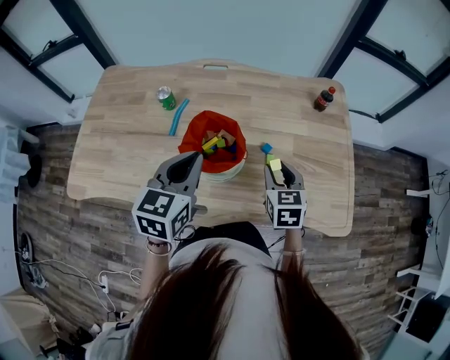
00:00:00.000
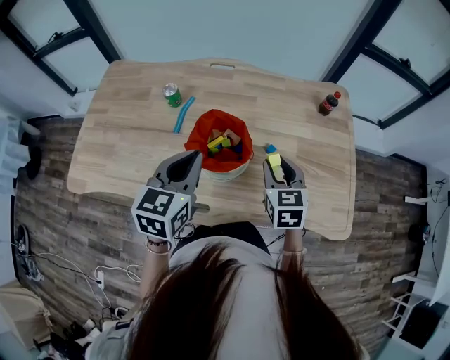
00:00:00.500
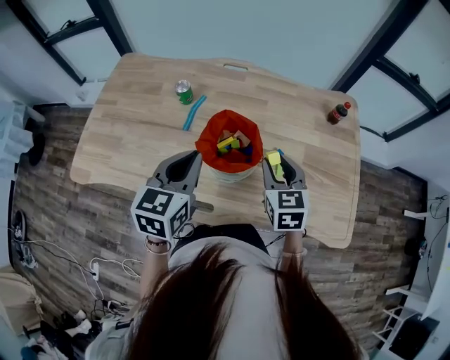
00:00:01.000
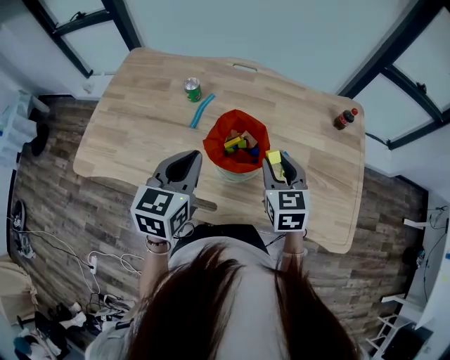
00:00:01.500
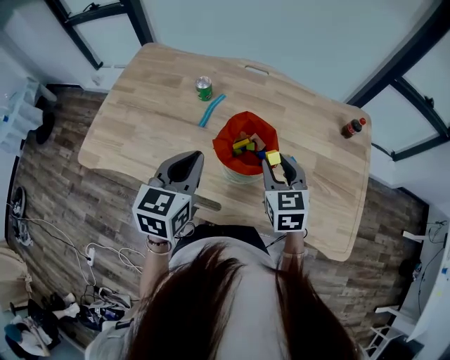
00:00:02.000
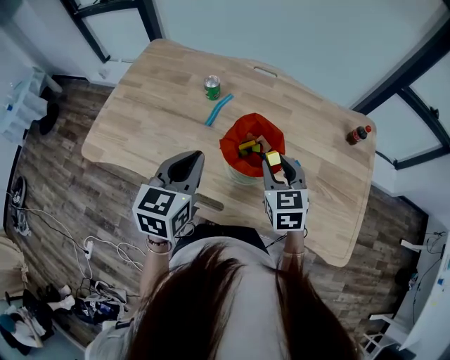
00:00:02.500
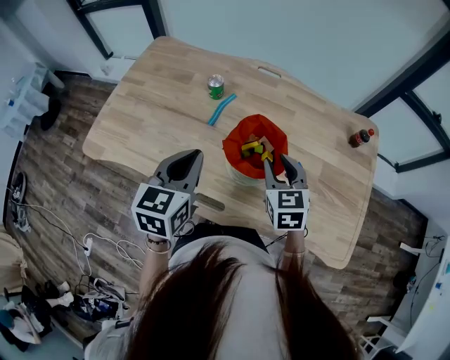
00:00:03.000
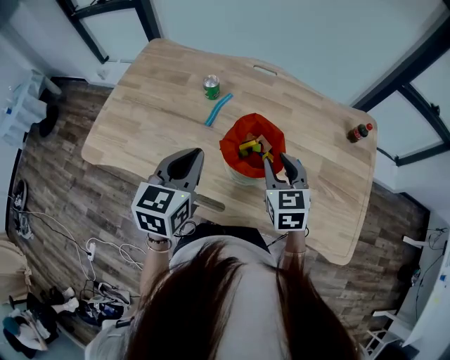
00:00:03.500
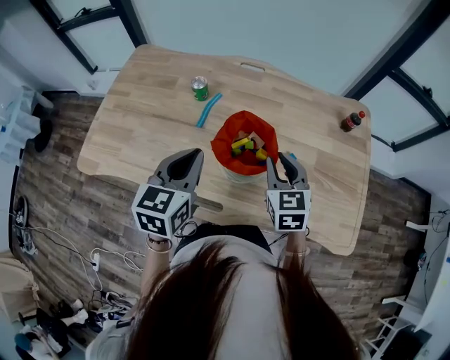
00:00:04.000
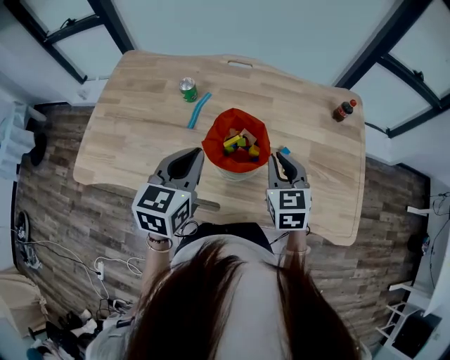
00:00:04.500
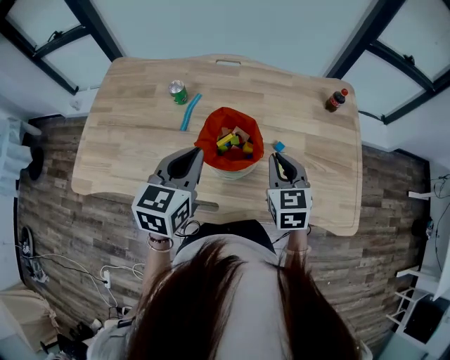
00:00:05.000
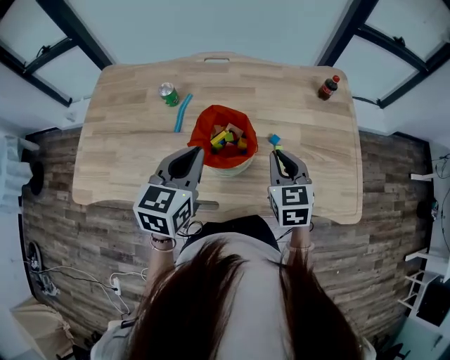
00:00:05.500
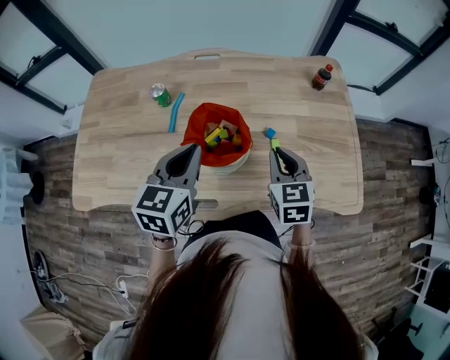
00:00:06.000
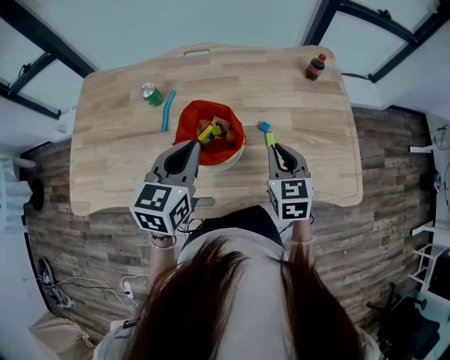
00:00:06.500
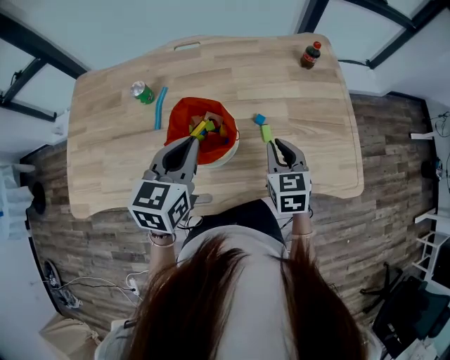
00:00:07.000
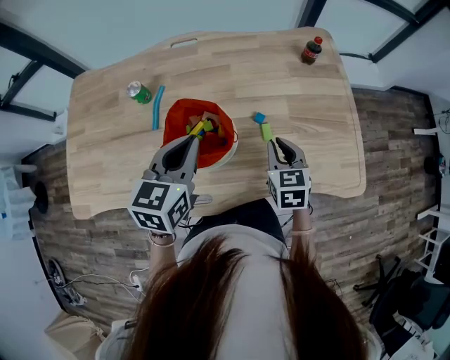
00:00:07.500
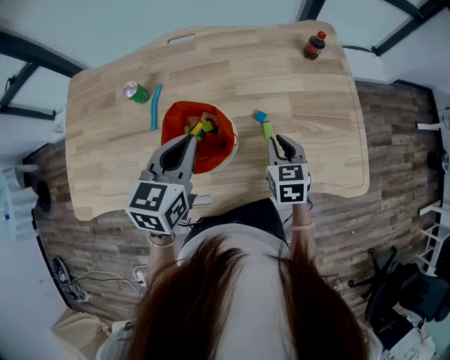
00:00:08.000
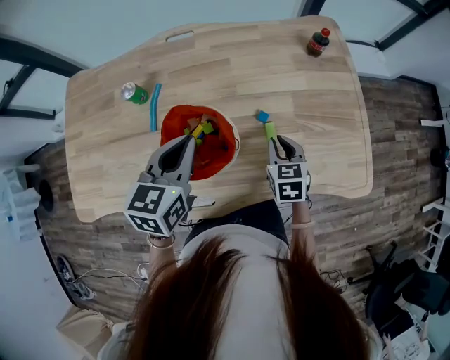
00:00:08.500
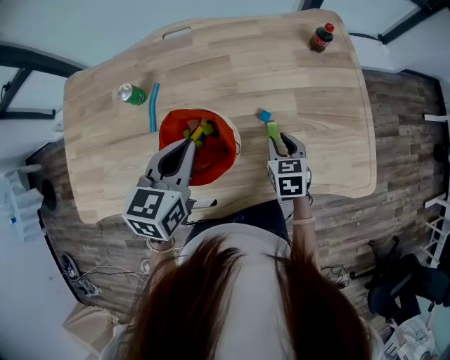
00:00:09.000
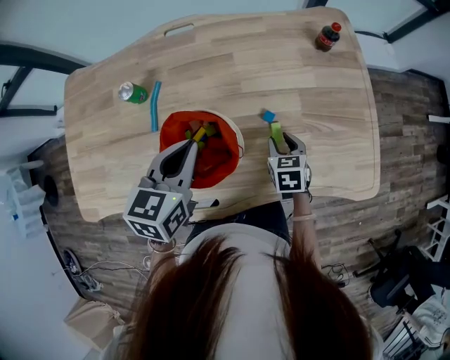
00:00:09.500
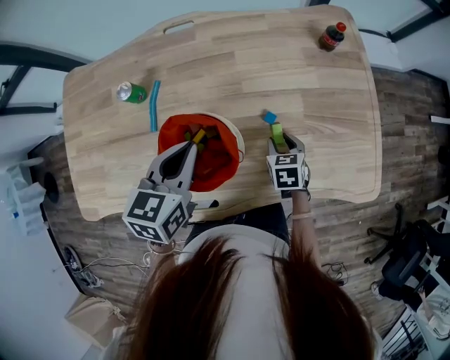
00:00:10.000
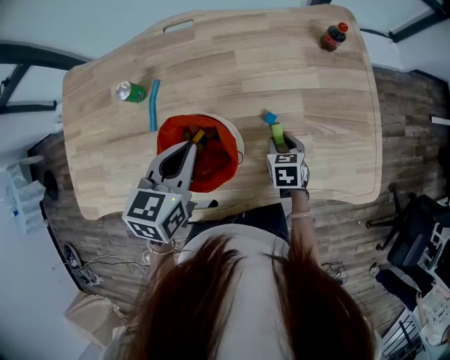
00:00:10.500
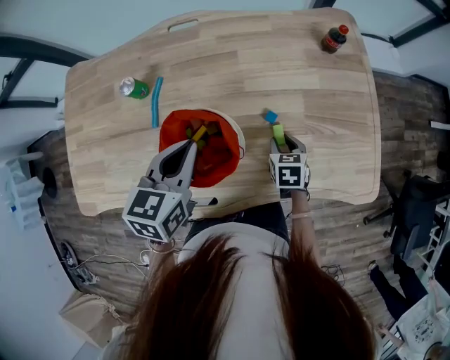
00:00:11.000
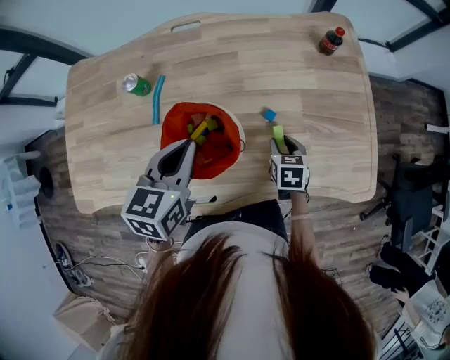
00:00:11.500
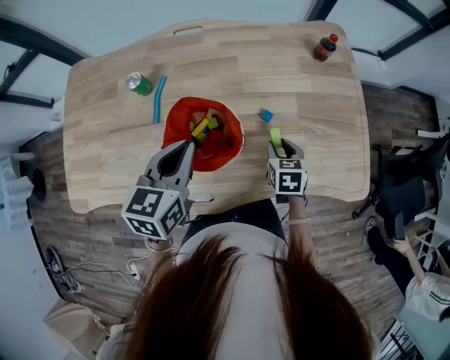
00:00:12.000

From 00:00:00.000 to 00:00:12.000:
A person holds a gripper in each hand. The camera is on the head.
From 00:00:00.000 to 00:00:02.000: The left gripper shifts some 10 cm to the left. The right gripper travels to the left and upward by approximately 10 cm.
From 00:00:02.000 to 00:00:04.000: There are only small adjustments of the grippers.
From 00:00:04.000 to 00:00:06.000: Both grippers travel together to the right, some 5 cm.
From 00:00:06.000 to 00:00:08.000: The left gripper shifts roughly 5 cm forward. The right gripper heads downward, covering some 10 cm.
From 00:00:08.000 to 00:00:10.000: The right gripper shifts about 10 cm downward, and opens up.
From 00:00:10.000 to 00:00:12.000: The right gripper changes place by roughly 5 cm. The left gripper moves roughly 5 cm.

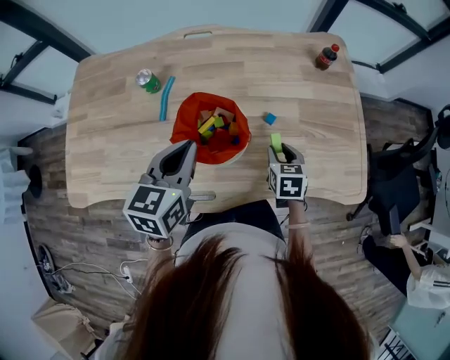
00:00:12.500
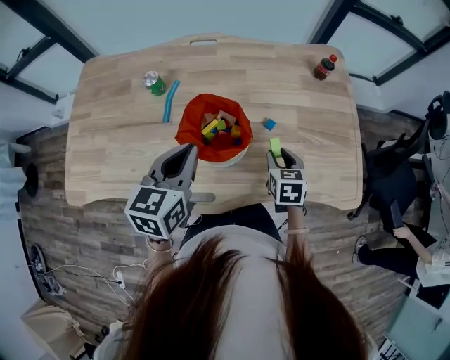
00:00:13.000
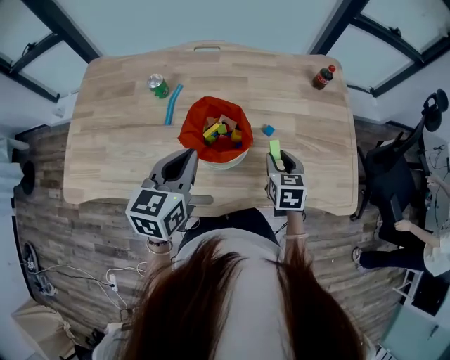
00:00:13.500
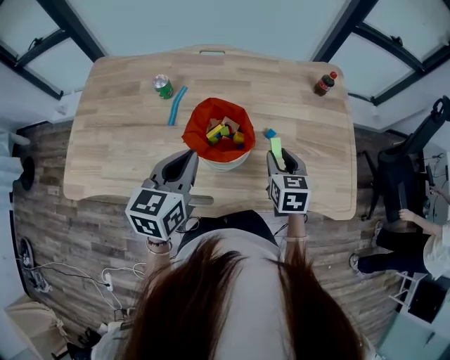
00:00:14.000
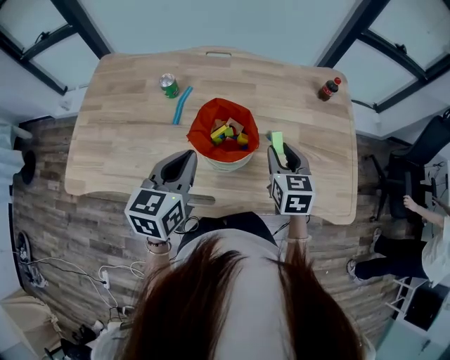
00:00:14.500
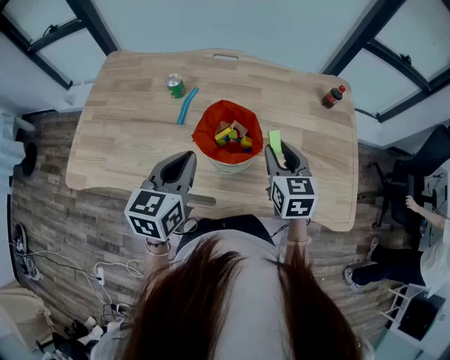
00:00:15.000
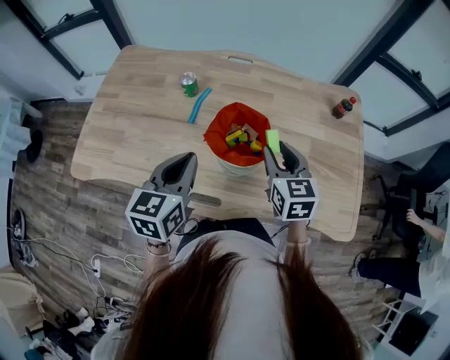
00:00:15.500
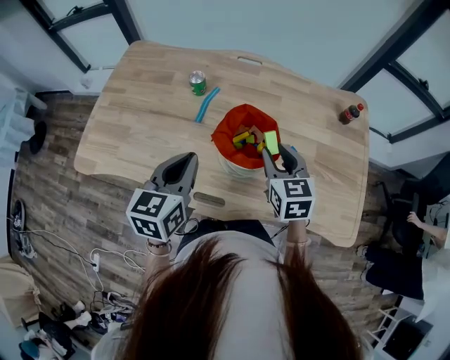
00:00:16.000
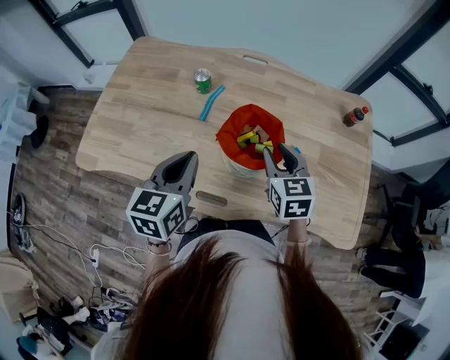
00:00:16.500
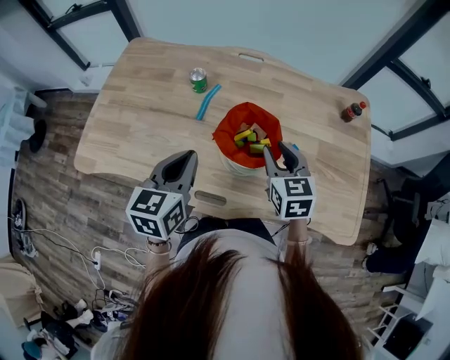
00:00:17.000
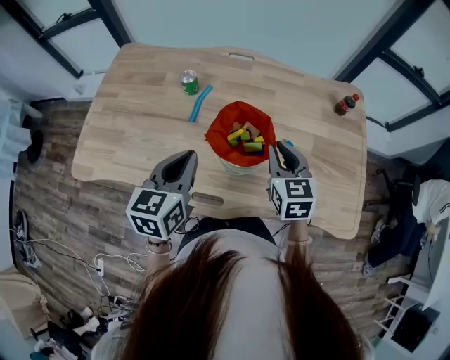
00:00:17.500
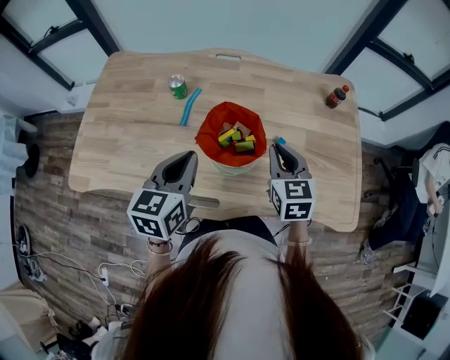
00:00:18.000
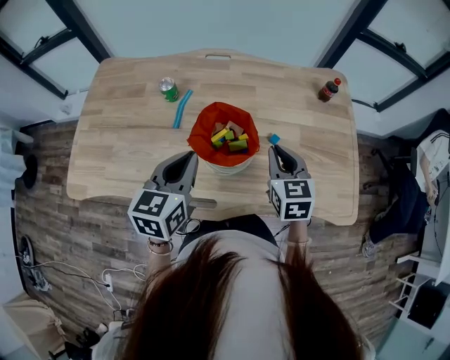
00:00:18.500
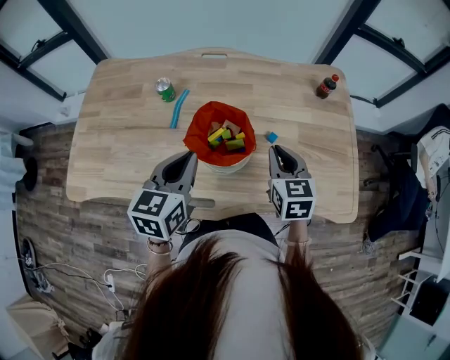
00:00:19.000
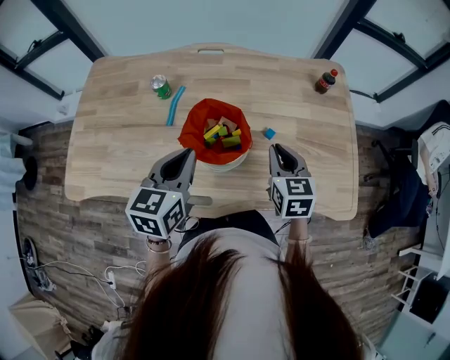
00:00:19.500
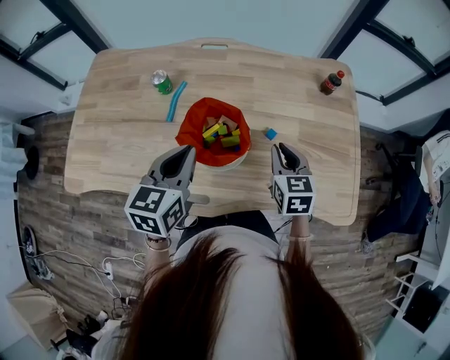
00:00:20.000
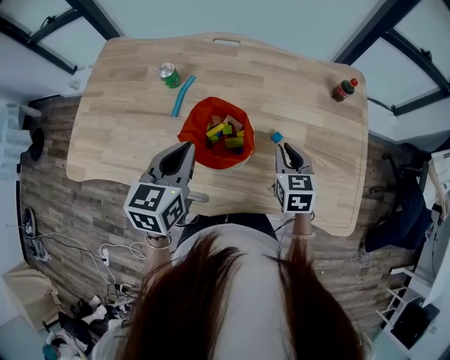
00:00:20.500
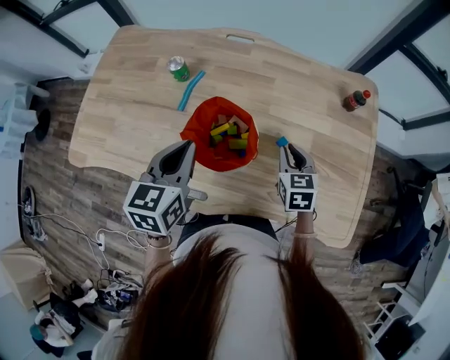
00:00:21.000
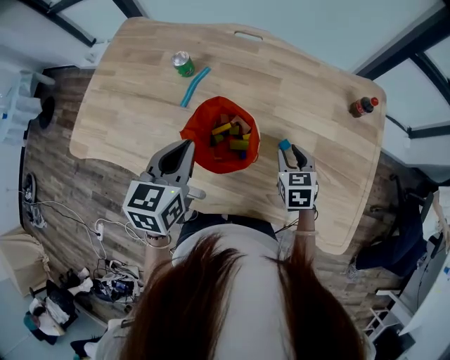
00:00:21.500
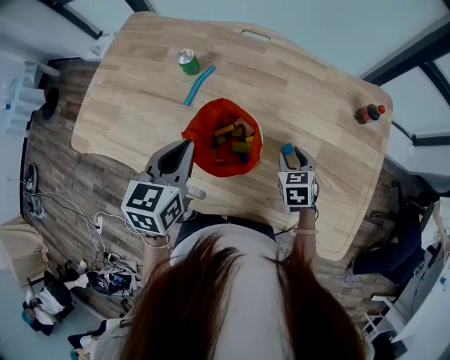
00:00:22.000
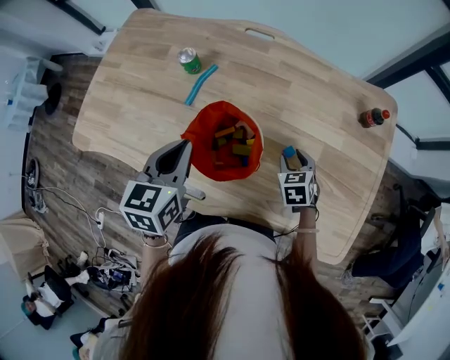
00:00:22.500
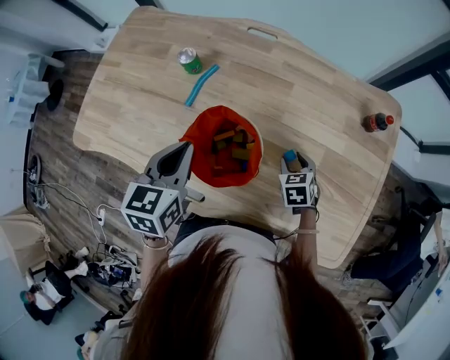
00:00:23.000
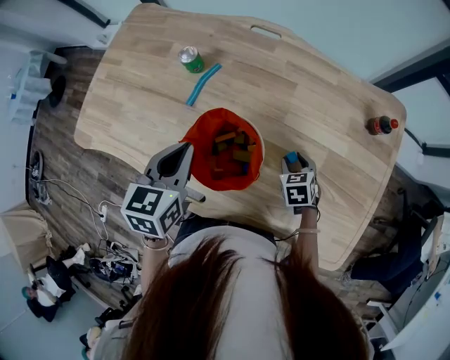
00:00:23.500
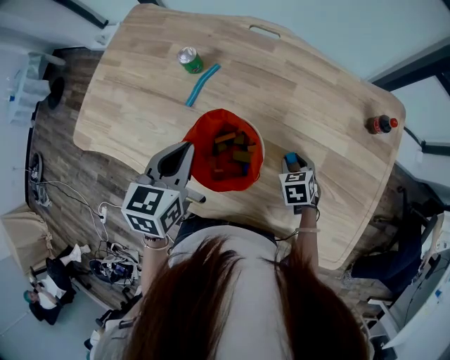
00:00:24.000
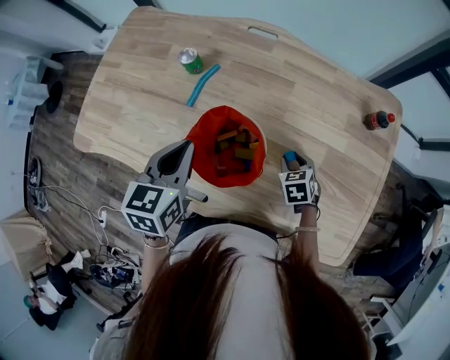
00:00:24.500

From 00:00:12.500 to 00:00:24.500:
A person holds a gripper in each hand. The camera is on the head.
From 00:00:12.500 to 00:00:14.500: The left gripper ends up roughly 5 cm from where it was, while the right gripper travels upward by roughly 15 cm.
From 00:00:14.500 to 00:00:16.500: The left gripper heads to the left, covering approximately 5 cm, while the right gripper travels to the left by approximately 10 cm.
From 00:00:16.500 to 00:00:18.500: The grippers both shift to the right by roughly 5 cm. The right gripper closes its fingers.
From 00:00:18.500 to 00:00:20.500: The right gripper is displaced downward by approximately 5 cm.
From 00:00:20.500 to 00:00:22.500: The right gripper travels downward by roughly 10 cm, rotates some 20 degrees, and opens its fingers.
From 00:00:22.500 to 00:00:24.500: The grippers stay close to where they were, moving slightly.

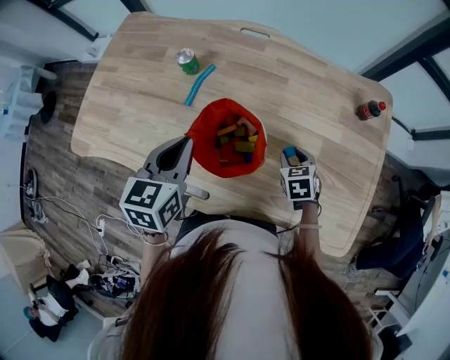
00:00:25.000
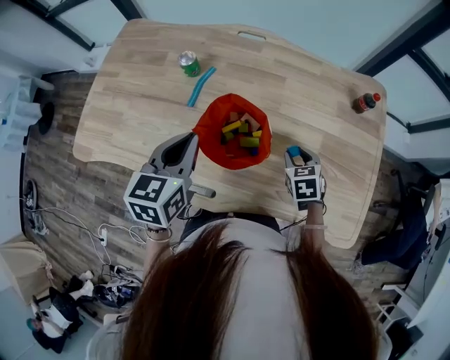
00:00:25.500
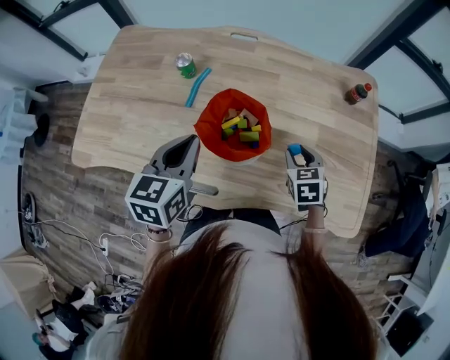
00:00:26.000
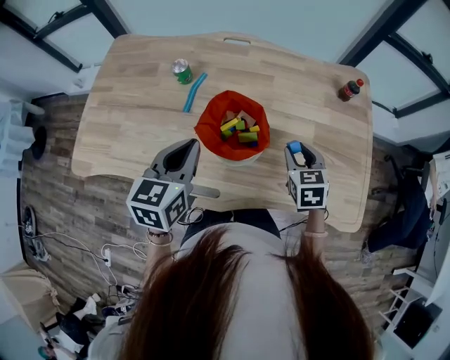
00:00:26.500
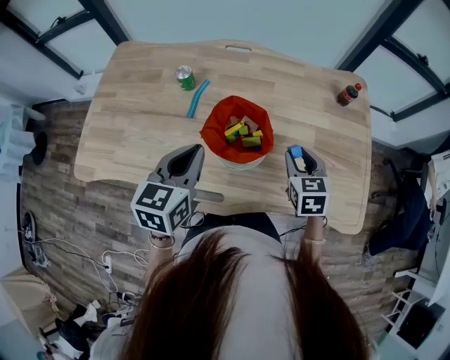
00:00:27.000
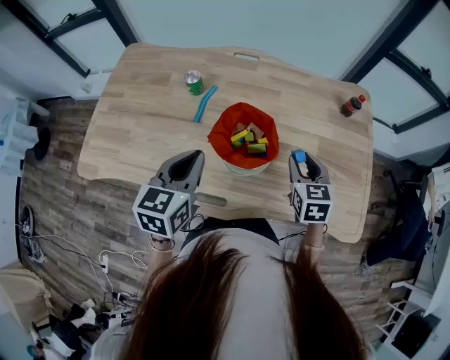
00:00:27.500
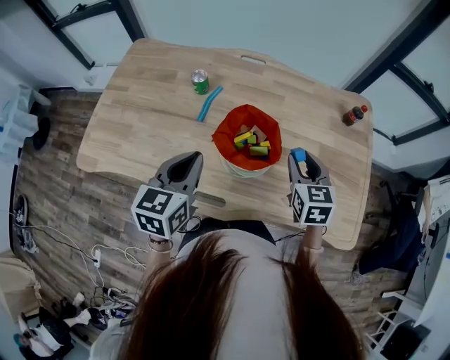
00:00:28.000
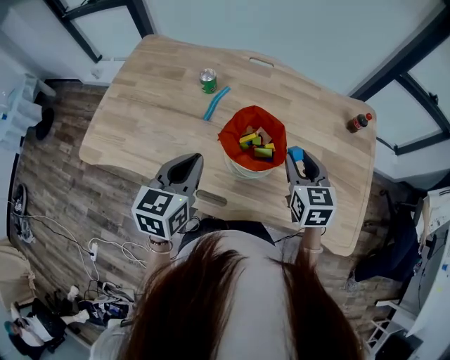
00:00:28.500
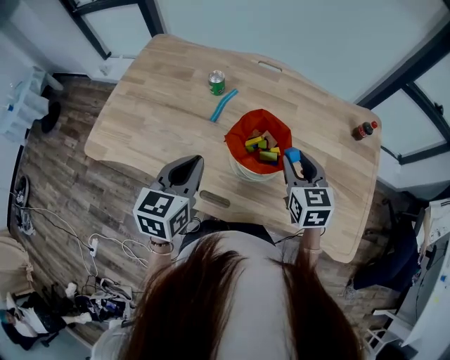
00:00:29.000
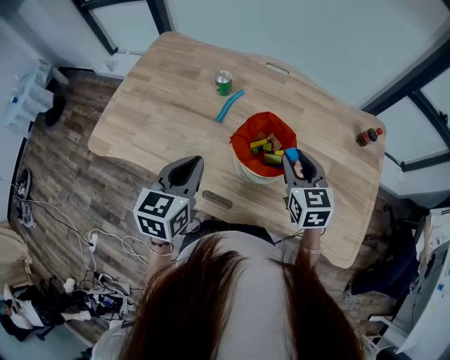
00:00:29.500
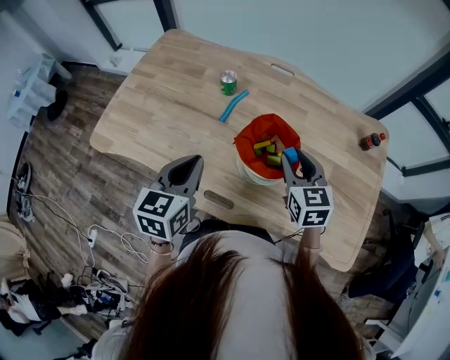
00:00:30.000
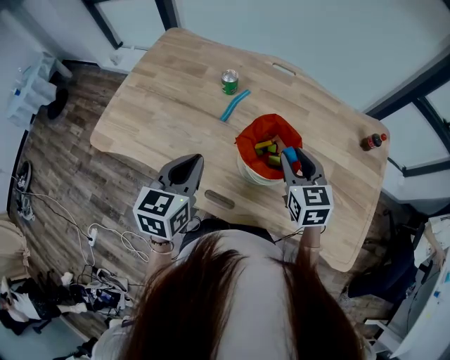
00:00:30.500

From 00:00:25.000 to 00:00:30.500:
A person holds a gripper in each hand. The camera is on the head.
From 00:00:25.000 to 00:00:27.000: The right gripper shifts about 15 cm upward and backward, and swivels some 20 degrees, while the left gripper moves approximately 5 cm.
From 00:00:27.000 to 00:00:28.500: The right gripper shifts approximately 10 cm upward and to the left.
From 00:00:28.500 to 00:00:30.500: The right gripper shifts approximately 5 cm to the left.
